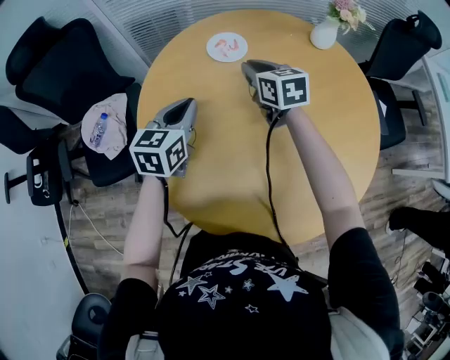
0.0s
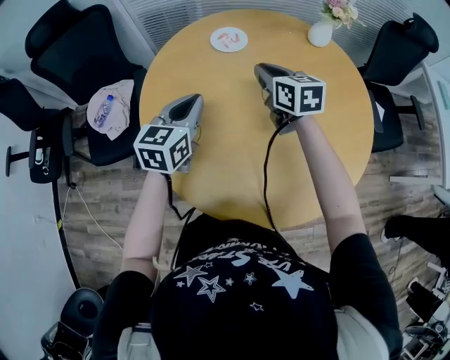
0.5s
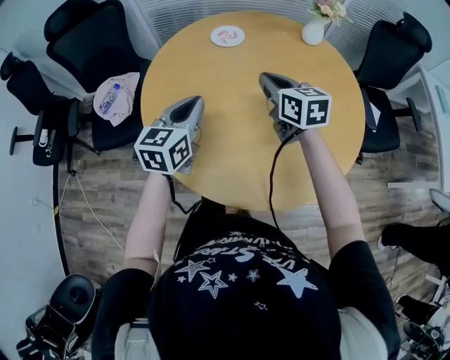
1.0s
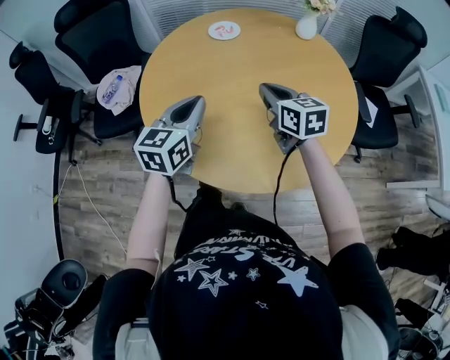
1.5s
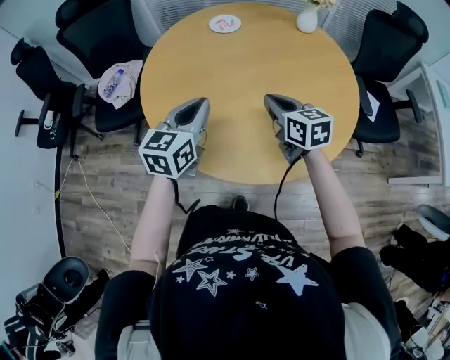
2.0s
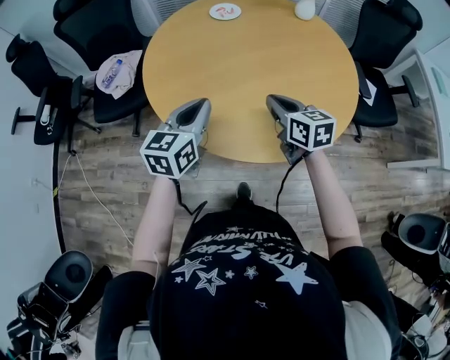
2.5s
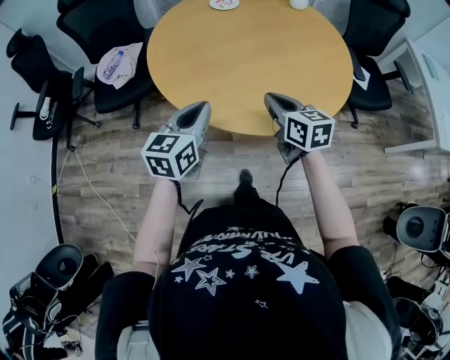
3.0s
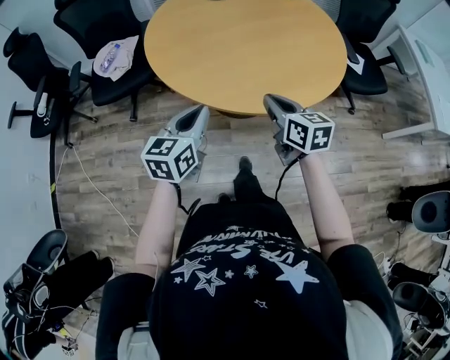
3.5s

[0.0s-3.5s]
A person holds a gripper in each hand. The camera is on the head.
0.0s to 2.0s: The grippers both shift backward by about 30 cm.
2.0s to 3.5s: The grippers both shift backward by approximately 25 cm.

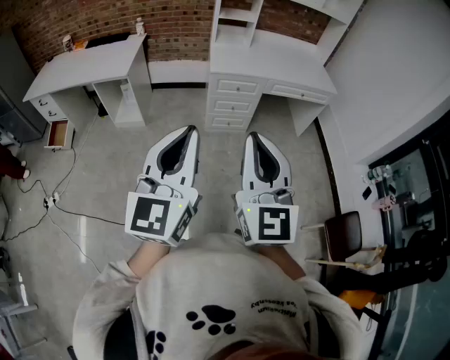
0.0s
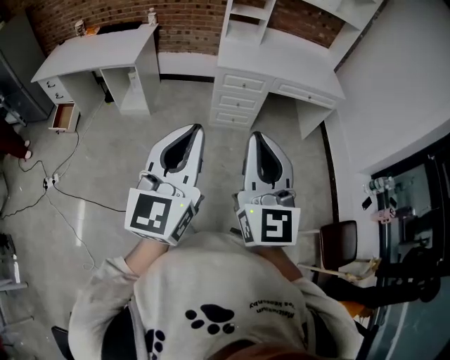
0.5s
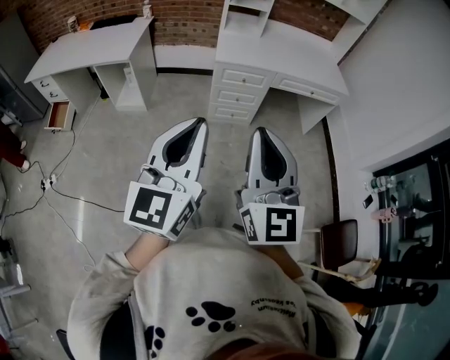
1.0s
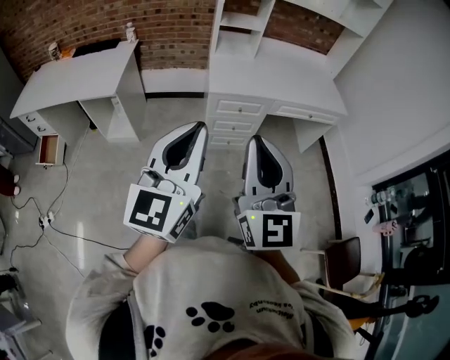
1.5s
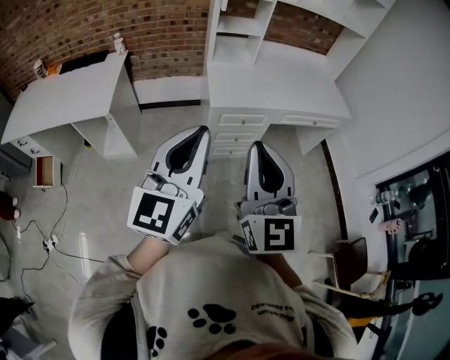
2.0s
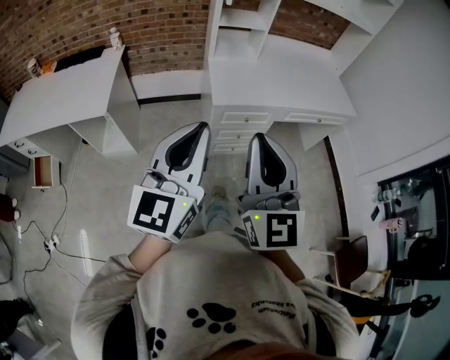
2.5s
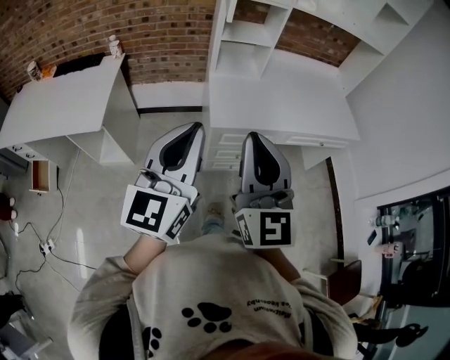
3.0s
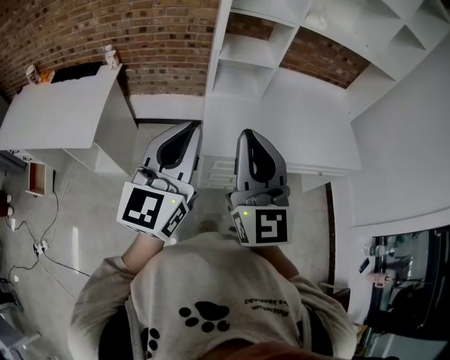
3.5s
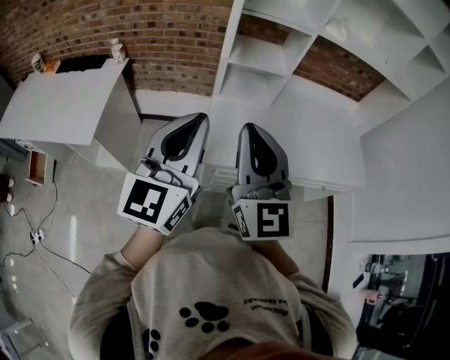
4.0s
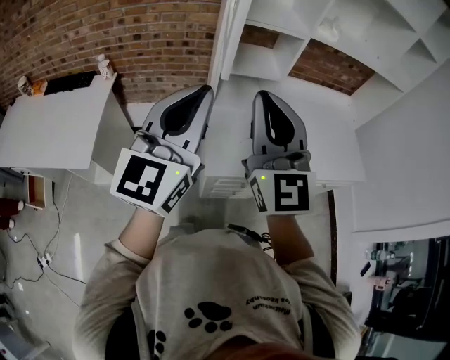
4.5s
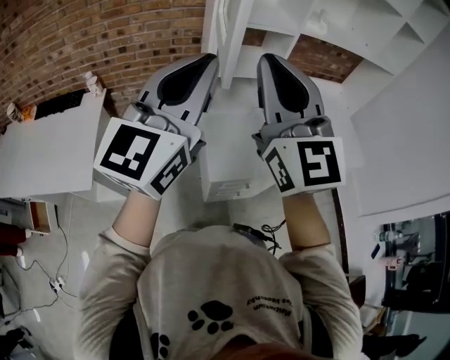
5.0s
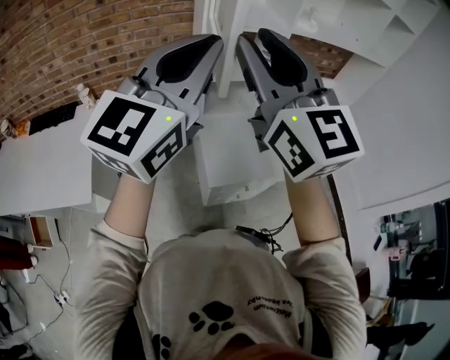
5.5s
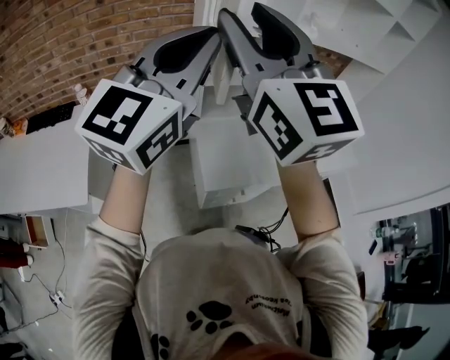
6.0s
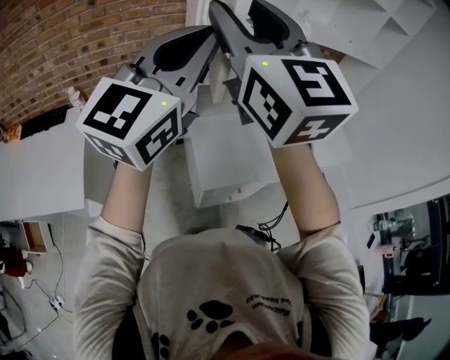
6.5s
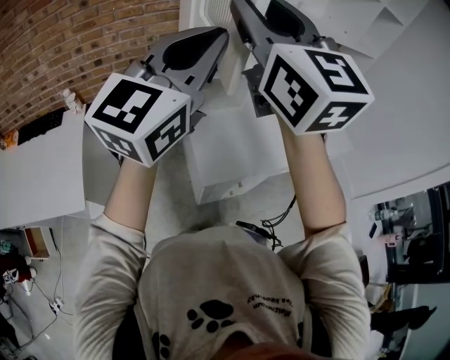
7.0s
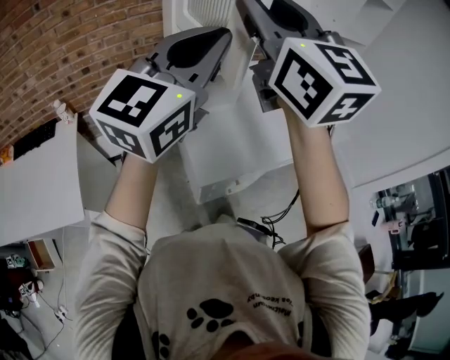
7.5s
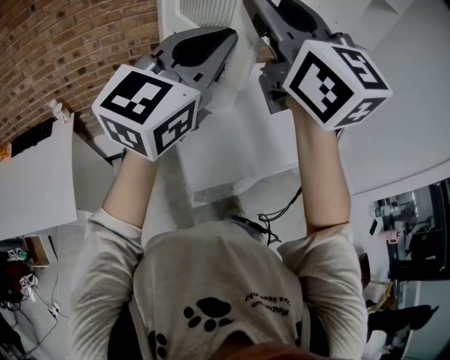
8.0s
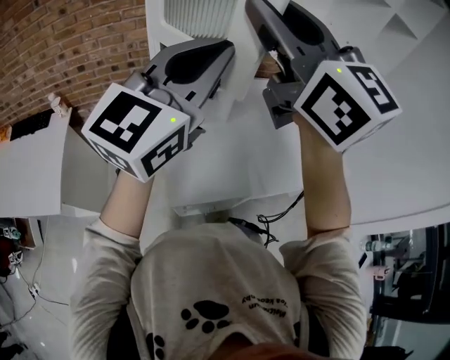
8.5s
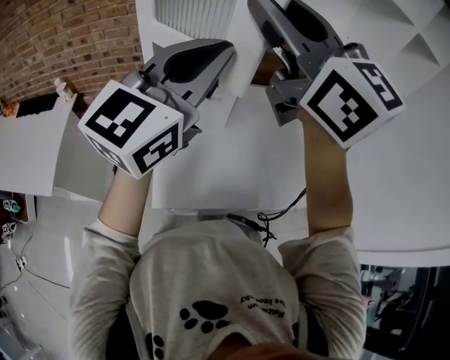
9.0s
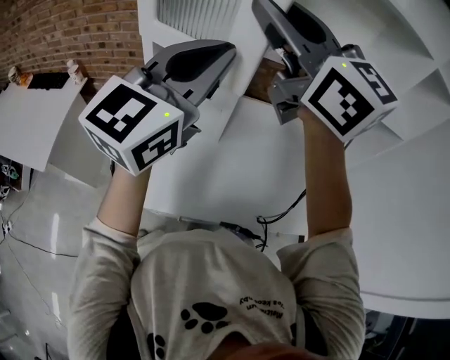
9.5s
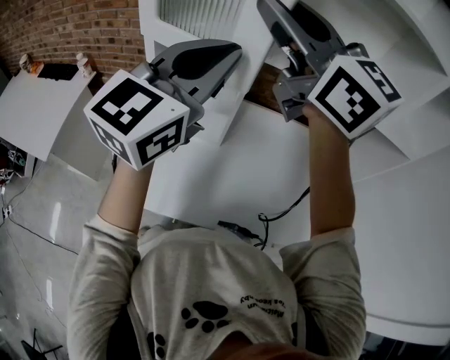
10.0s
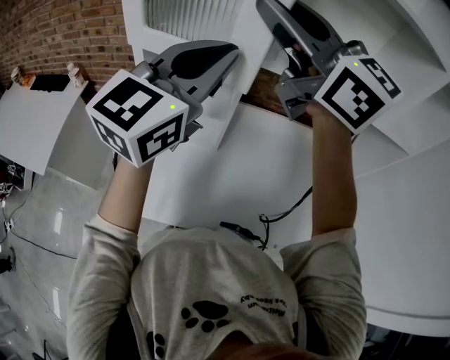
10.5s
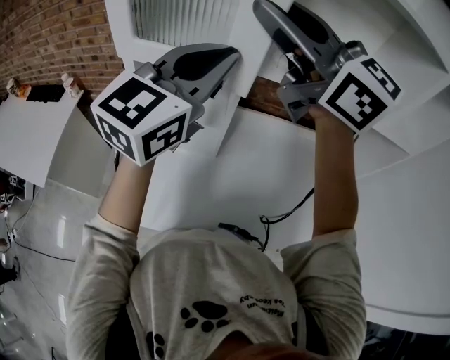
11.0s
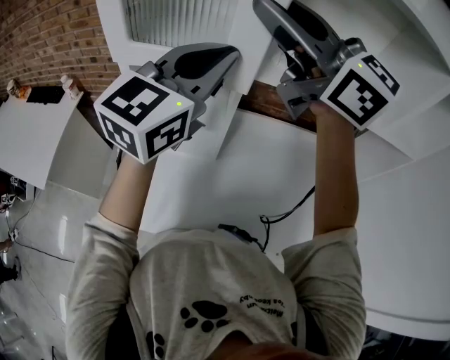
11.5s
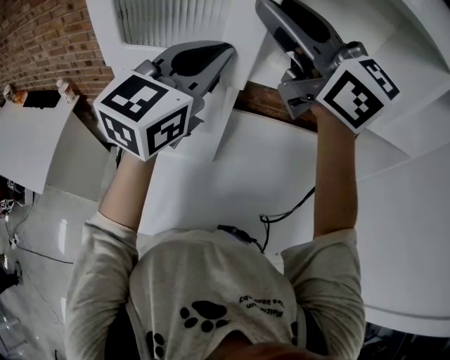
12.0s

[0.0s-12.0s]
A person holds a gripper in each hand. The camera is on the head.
0.0s to 2.0s: Both grippers move forward, roughly 35 cm.
2.0s to 4.0s: Both grippers move forward, approximately 35 cm.
4.0s to 6.0s: The right gripper shifts approximately 25 cm upward, forward and to the left, and opens up. Meanwhile the left gripper is displaced upward and forward by about 20 cm, and swivels roughly 30 degrees.
6.0s to 8.0s: Both grippers move to the right and forward, some 10 cm.
8.0s to 10.0s: The right gripper ends up some 20 cm from where it was, and swivels roughly 40 degrees. Meanwhile the left gripper shifts by about 20 cm, and swivels about 20 degrees.
10.0s to 12.0s: The left gripper goes some 10 cm forward, while the right gripper heads forward and to the right, covering some 10 cm.

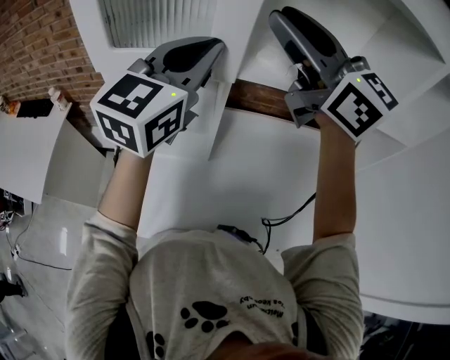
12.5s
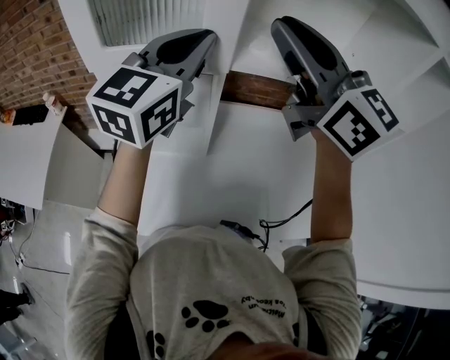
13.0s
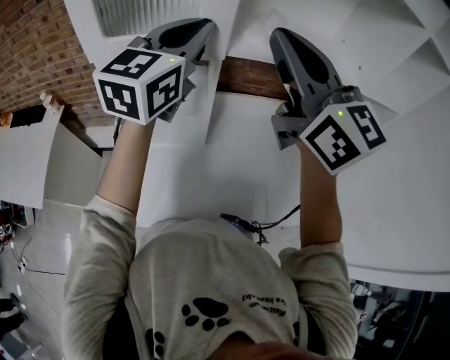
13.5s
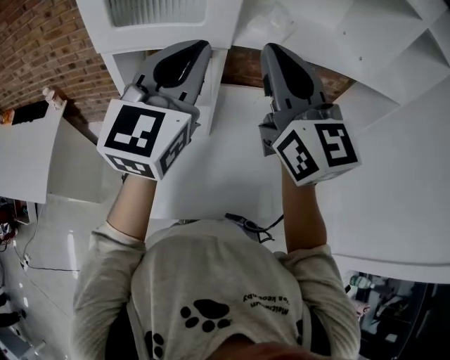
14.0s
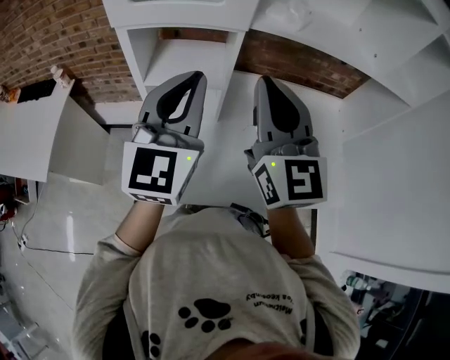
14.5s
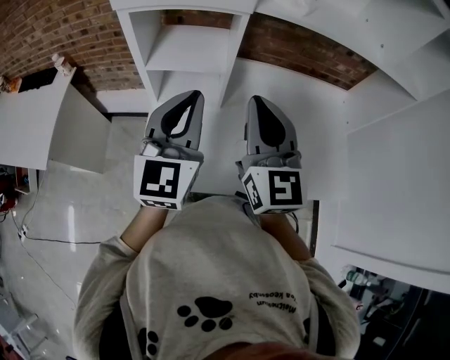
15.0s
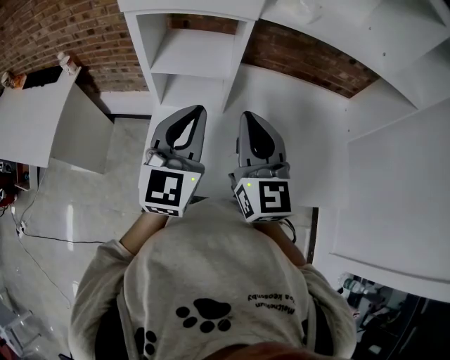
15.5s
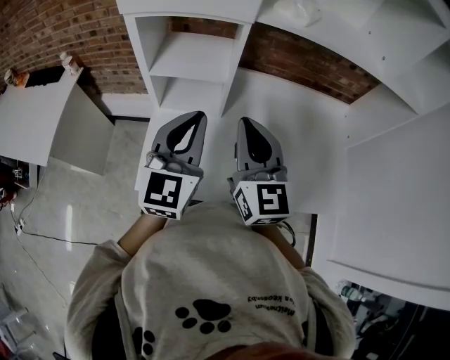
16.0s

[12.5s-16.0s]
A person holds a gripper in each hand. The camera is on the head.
12.5s to 14.5s: Both grippers move backward and downward, some 20 cm. The right gripper rotates about 30 degrees, and closes.
14.5s to 16.0s: Both grippers move downward, some 10 cm.

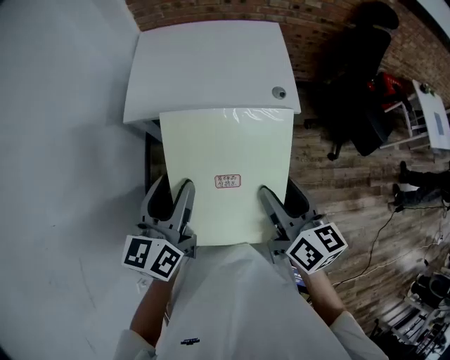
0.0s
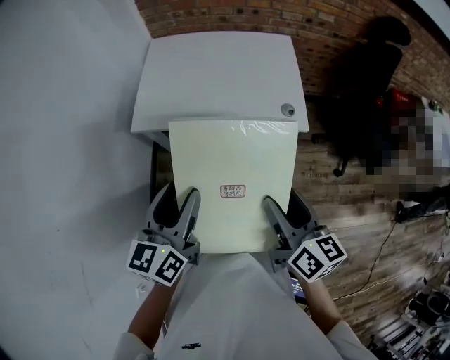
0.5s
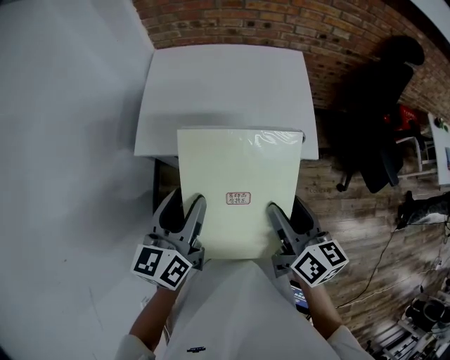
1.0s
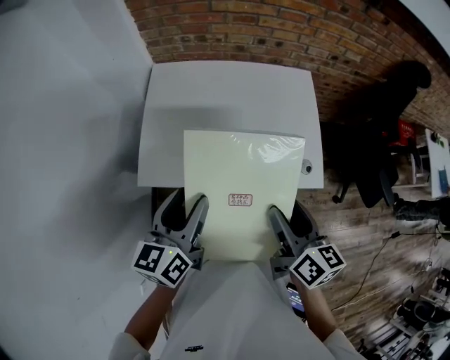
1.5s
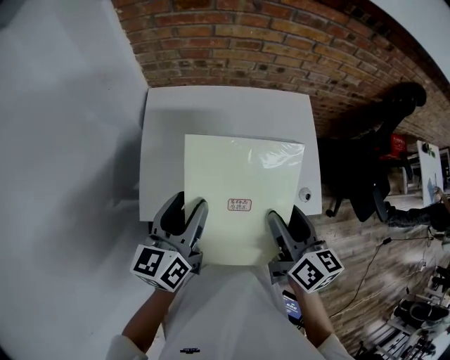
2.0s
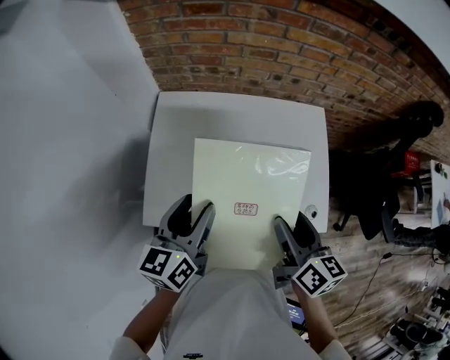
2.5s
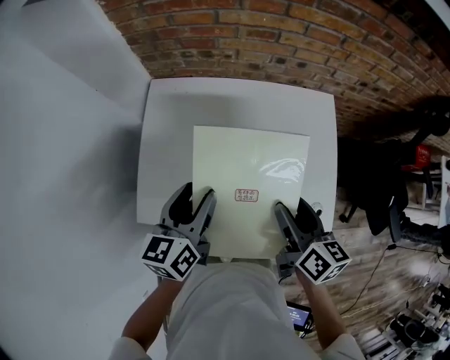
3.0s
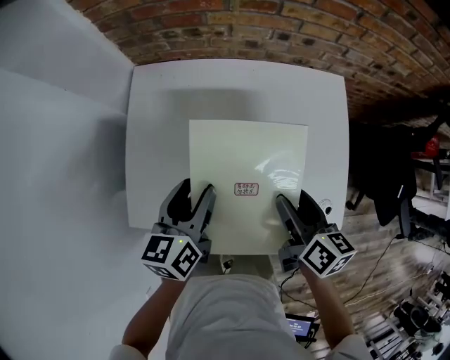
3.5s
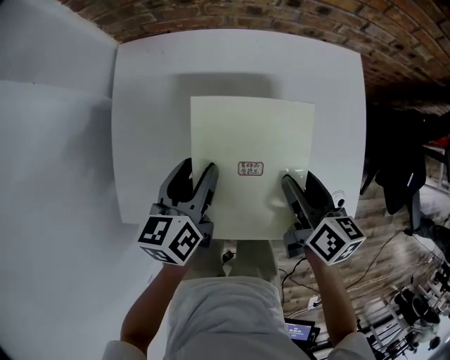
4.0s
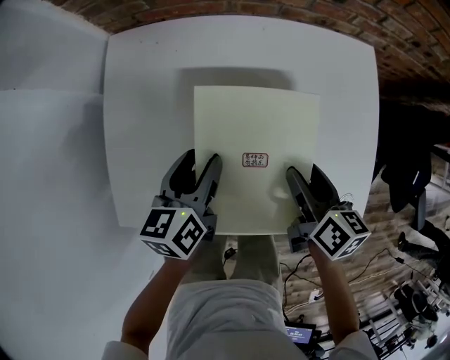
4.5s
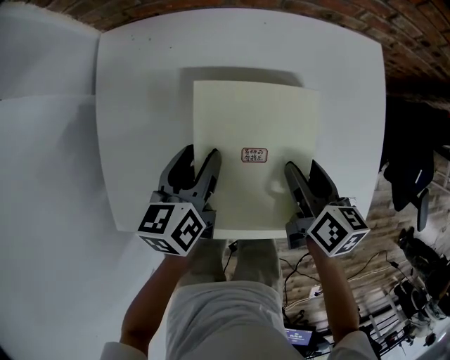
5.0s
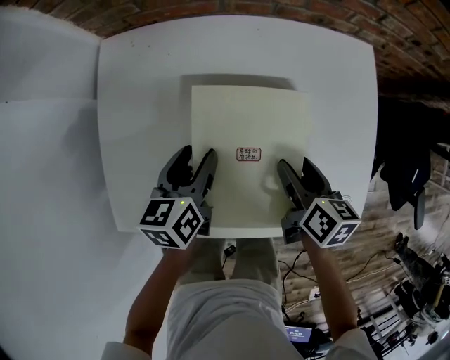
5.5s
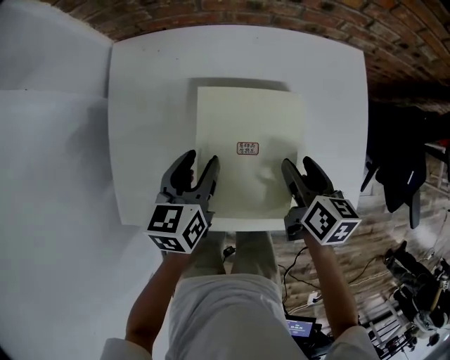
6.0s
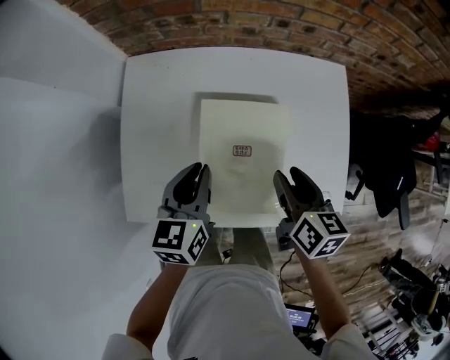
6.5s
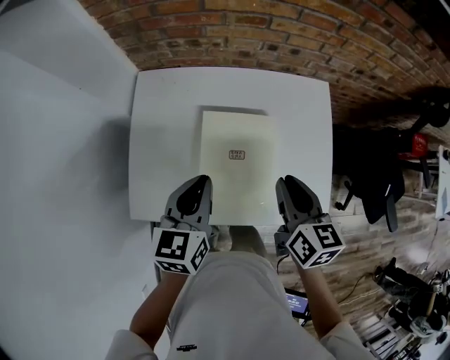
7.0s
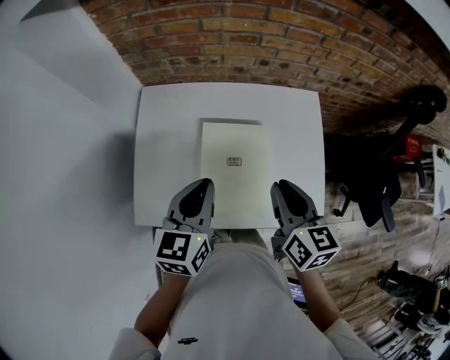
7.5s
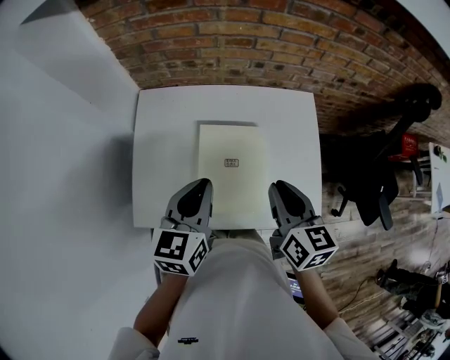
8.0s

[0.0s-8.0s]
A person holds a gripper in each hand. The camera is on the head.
0.0s to 2.0s: Both grippers travel together forward, approximately 40 cm.
2.0s to 4.0s: Both grippers travel together downward and forward, roughly 25 cm.
6.0s to 8.0s: Both grippers travel together upward, about 25 cm. The right gripper swivels approximately 20 degrees, and closes its fingers. The left gripper closes.
